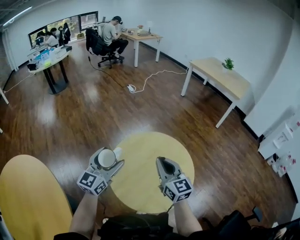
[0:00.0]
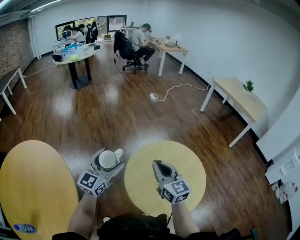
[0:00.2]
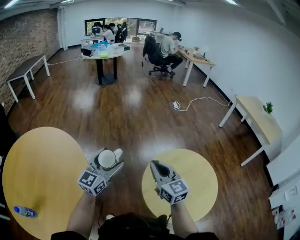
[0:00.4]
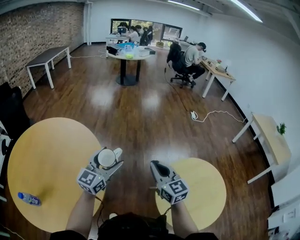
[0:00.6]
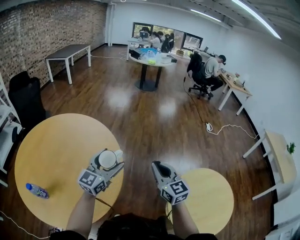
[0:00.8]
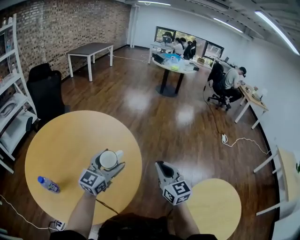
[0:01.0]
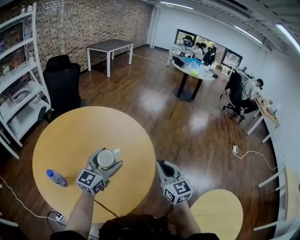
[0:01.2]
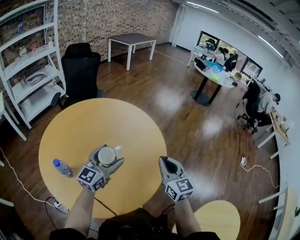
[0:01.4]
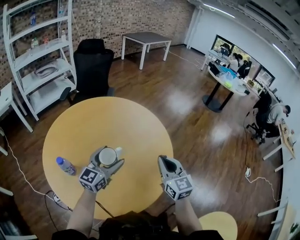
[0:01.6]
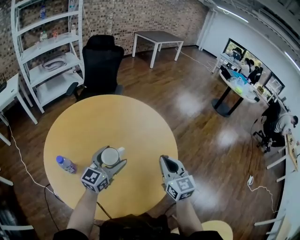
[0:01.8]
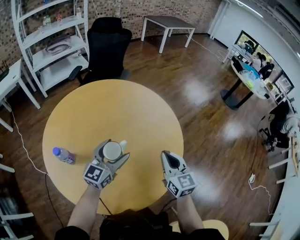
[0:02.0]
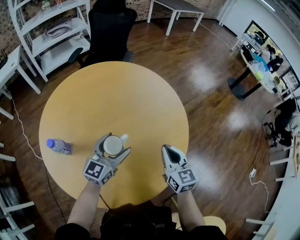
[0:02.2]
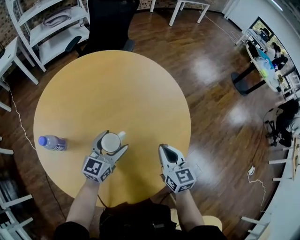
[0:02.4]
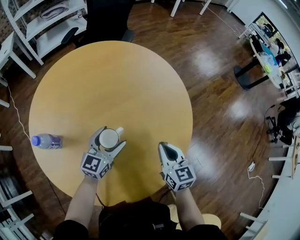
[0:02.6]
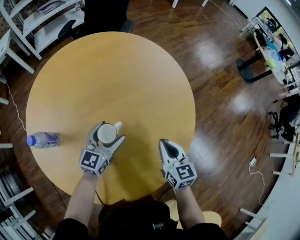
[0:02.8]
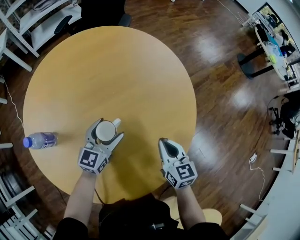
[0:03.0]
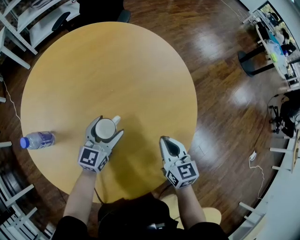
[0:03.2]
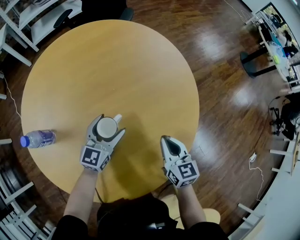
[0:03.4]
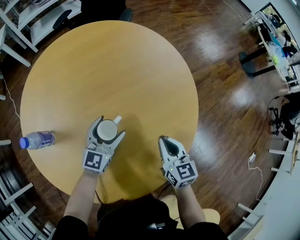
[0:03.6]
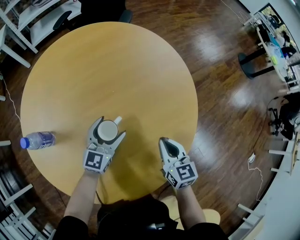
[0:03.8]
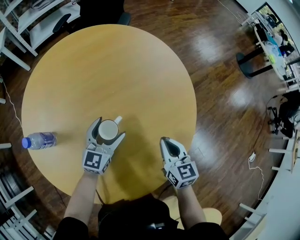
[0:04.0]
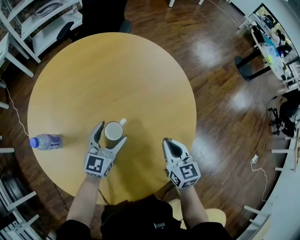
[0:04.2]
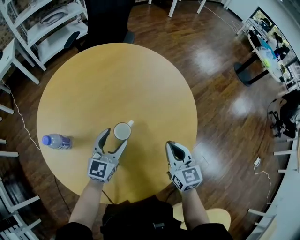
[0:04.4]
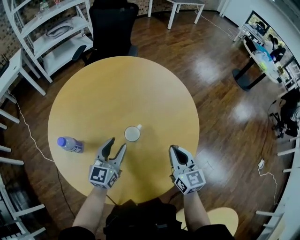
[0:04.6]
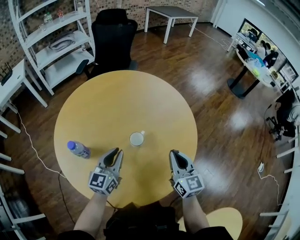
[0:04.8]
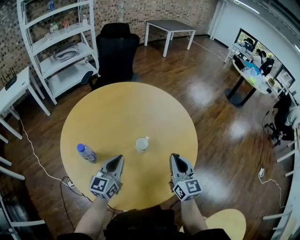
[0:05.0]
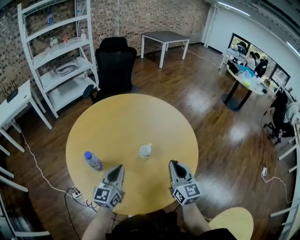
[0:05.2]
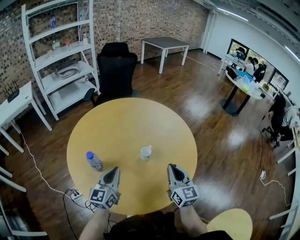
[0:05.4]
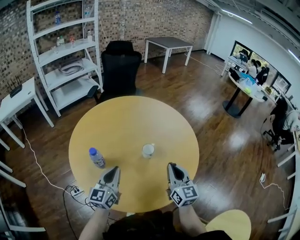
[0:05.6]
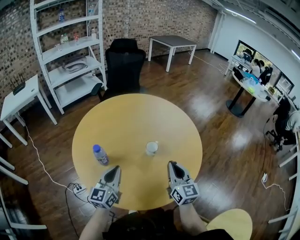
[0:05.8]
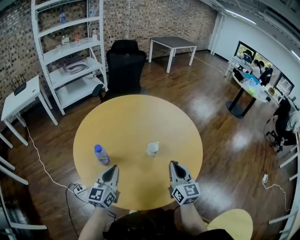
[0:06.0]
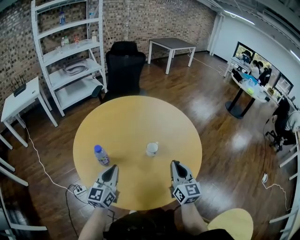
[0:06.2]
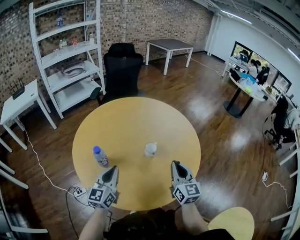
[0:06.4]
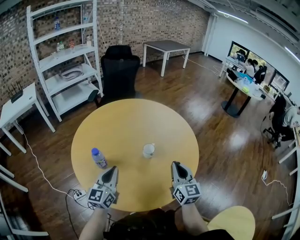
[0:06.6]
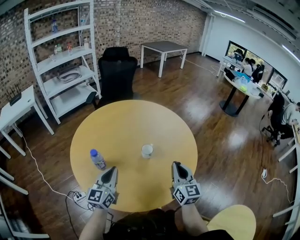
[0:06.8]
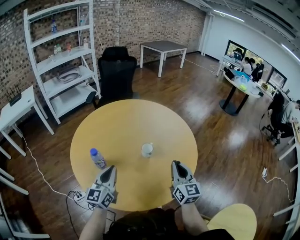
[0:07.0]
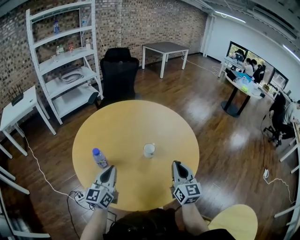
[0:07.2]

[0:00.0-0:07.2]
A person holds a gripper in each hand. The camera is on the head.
0:00.0 to 0:01.4: The two grippers travel together, roughly 70 cm. The left gripper turns by roughly 70 degrees, while the right gripper swivels roughly 70 degrees.
0:01.4 to 0:02.8: The two grippers go approximately 25 cm downward and forward. The right gripper rotates about 30 degrees. Meanwhile the left gripper swivels approximately 30 degrees.
0:02.8 to 0:04.4: The left gripper changes place by about 5 cm. The right gripper changes place by roughly 5 cm.
0:04.4 to 0:05.8: The two grippers go some 20 cm to the left, backward and upward. The left gripper closes its fingers.
0:05.8 to 0:07.2: The grippers make only small movements.

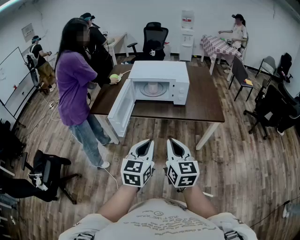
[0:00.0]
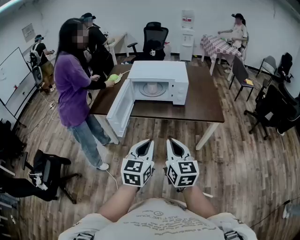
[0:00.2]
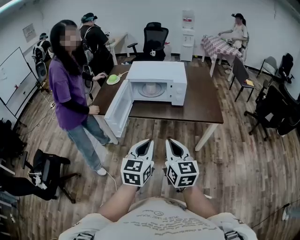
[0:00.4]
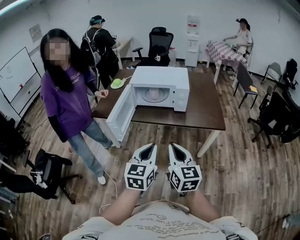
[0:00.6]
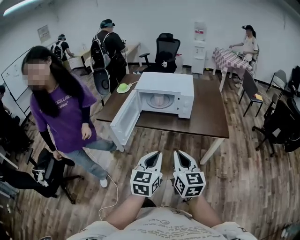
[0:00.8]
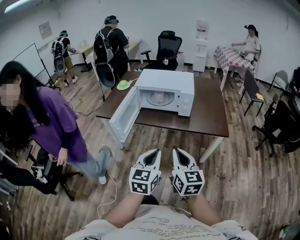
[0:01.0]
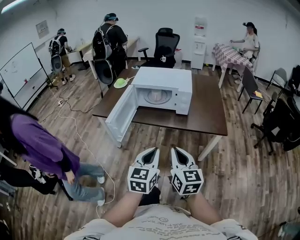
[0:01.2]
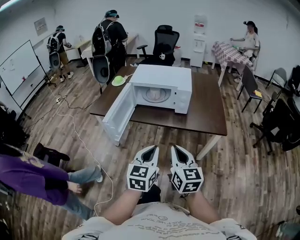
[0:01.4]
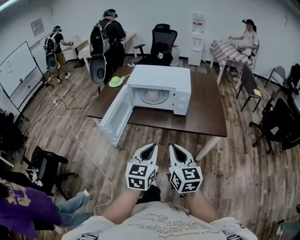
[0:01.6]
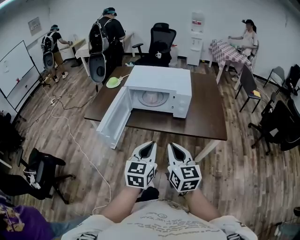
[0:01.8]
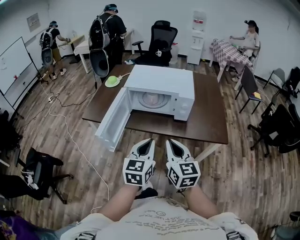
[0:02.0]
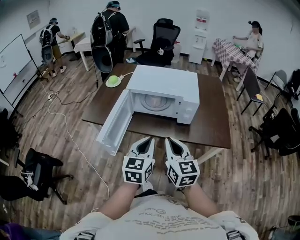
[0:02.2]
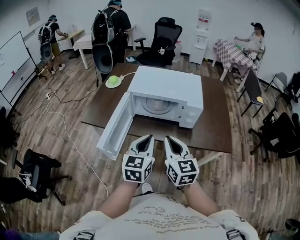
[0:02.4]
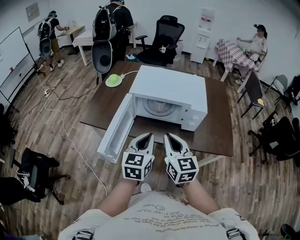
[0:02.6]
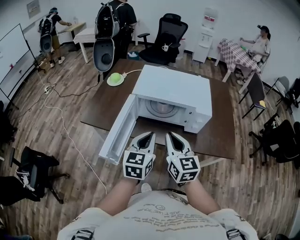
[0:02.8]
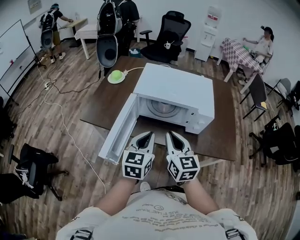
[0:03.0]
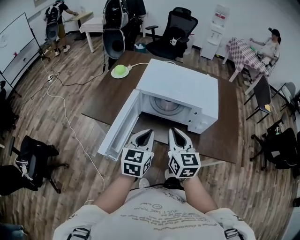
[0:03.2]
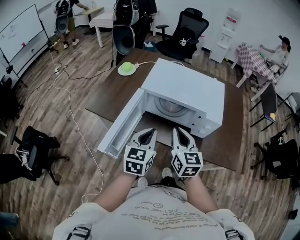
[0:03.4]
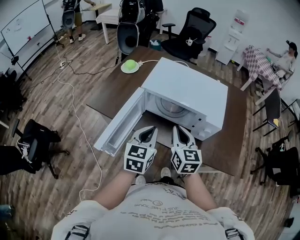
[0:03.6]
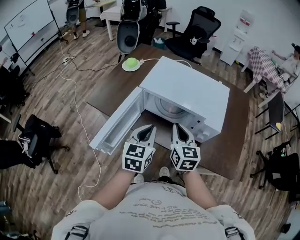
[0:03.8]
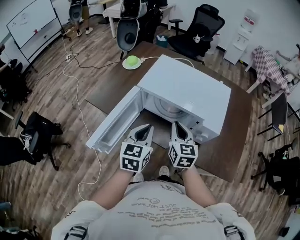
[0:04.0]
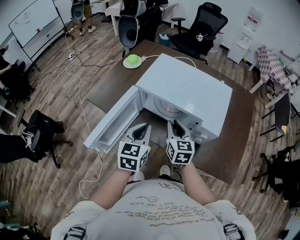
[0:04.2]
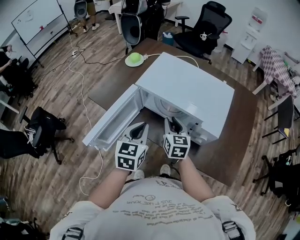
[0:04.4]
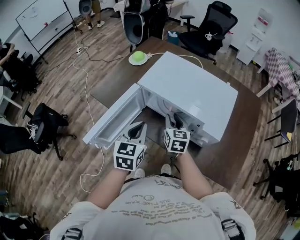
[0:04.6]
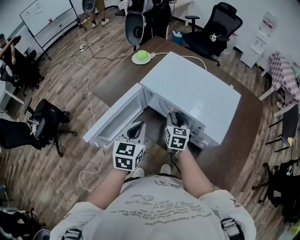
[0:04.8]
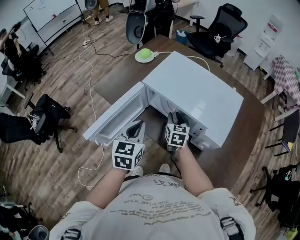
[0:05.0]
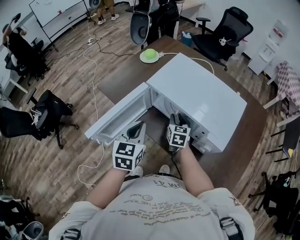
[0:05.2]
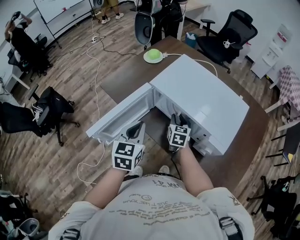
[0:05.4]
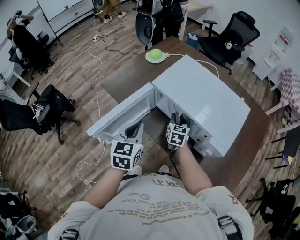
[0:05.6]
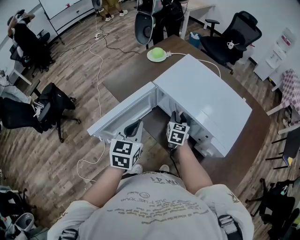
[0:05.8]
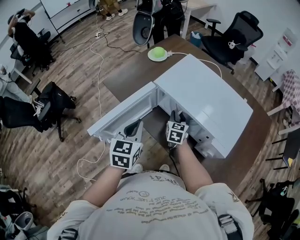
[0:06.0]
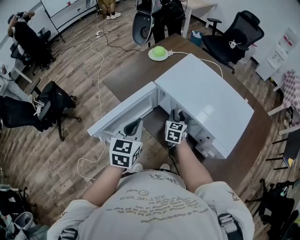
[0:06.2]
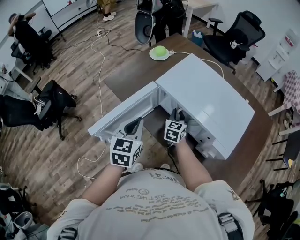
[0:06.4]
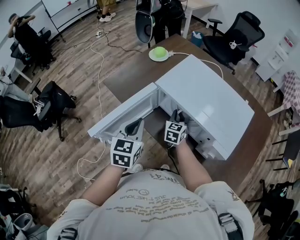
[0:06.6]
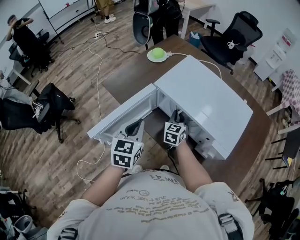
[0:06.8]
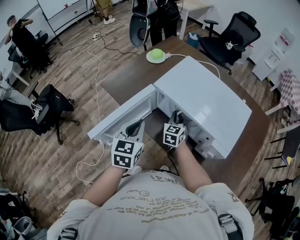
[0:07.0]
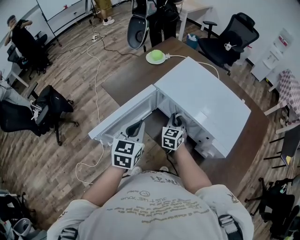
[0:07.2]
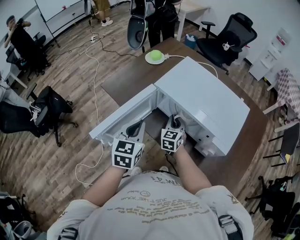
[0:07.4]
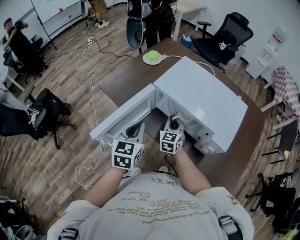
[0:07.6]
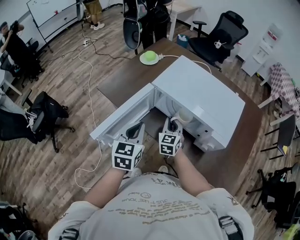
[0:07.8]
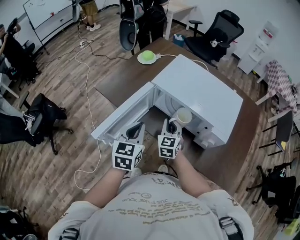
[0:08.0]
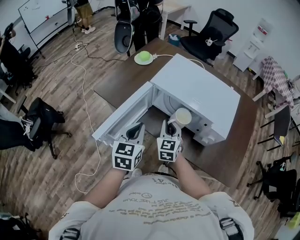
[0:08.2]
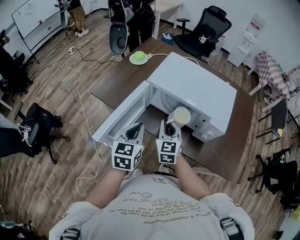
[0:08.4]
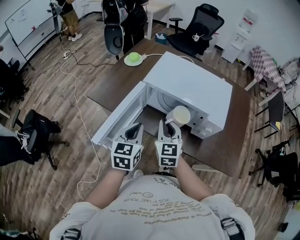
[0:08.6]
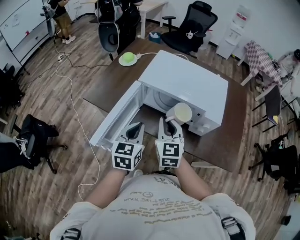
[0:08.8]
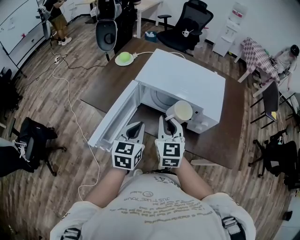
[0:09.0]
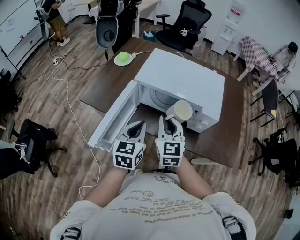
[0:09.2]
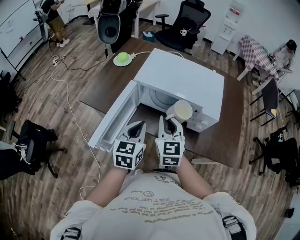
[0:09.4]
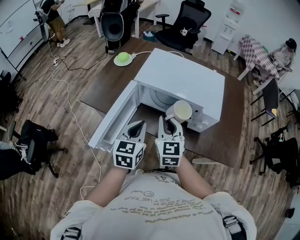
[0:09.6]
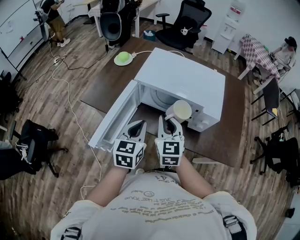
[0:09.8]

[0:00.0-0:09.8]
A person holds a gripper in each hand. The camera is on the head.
0:00.0 to 0:01.4: Both grippers move to the right, some 5 cm.
0:01.4 to 0:02.8: The grippers both shift forward by roughly 25 cm.
0:02.8 to 0:04.2: The left gripper moves forward, about 10 cm. The right gripper travels forward and downward by roughly 15 cm.
0:04.2 to 0:05.6: The left gripper shifts about 5 cm to the left, while the right gripper is displaced downward and forward by roughly 15 cm.
0:05.6 to 0:07.0: The grippers make only small movements.
0:07.0 to 0:08.4: The right gripper is displaced backward and upward by approximately 15 cm.
0:08.4 to 0:09.8: The right gripper goes roughly 5 cm upward.

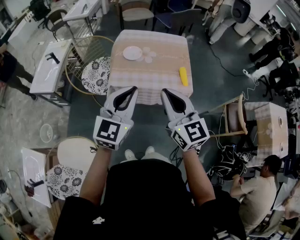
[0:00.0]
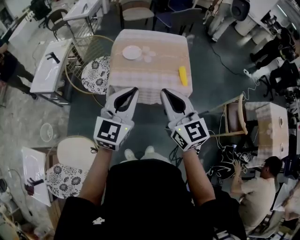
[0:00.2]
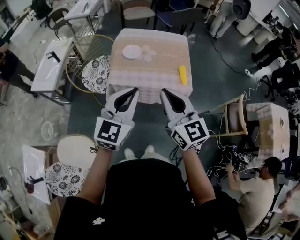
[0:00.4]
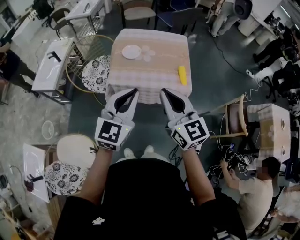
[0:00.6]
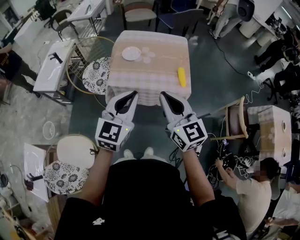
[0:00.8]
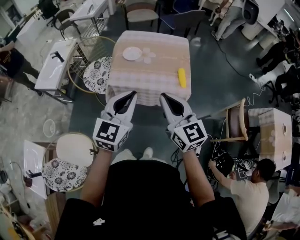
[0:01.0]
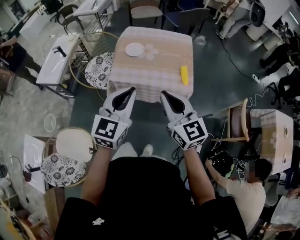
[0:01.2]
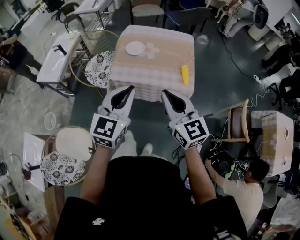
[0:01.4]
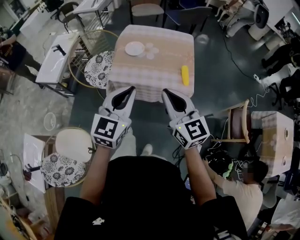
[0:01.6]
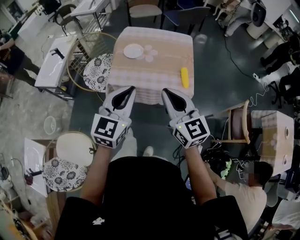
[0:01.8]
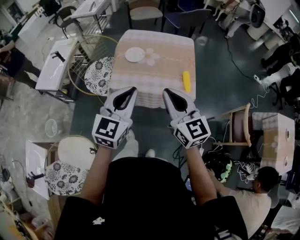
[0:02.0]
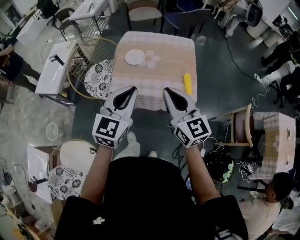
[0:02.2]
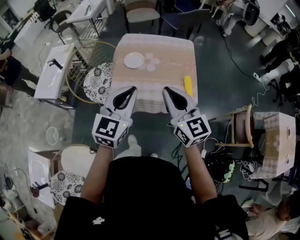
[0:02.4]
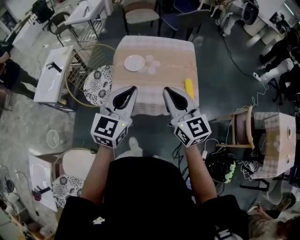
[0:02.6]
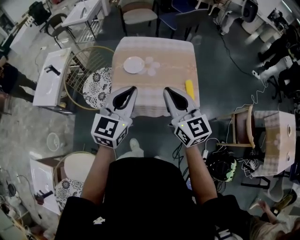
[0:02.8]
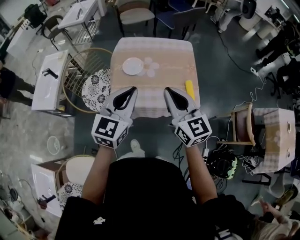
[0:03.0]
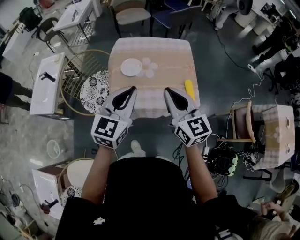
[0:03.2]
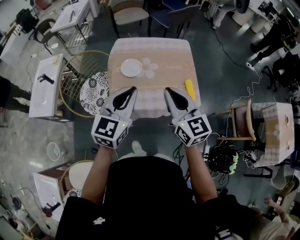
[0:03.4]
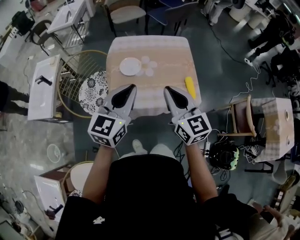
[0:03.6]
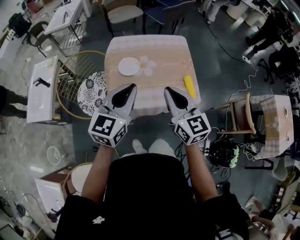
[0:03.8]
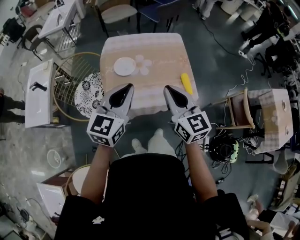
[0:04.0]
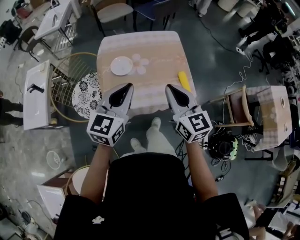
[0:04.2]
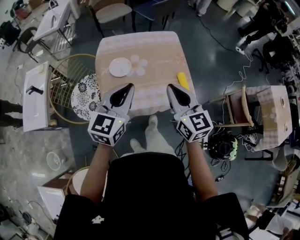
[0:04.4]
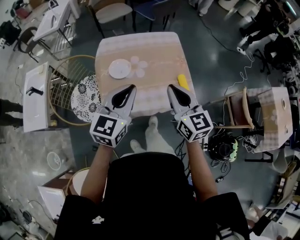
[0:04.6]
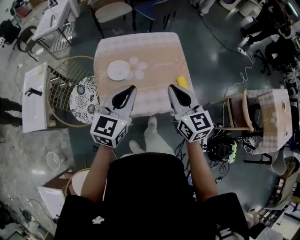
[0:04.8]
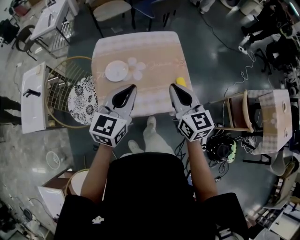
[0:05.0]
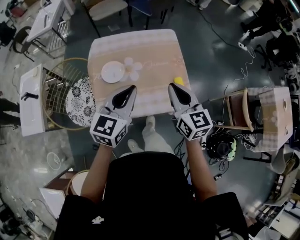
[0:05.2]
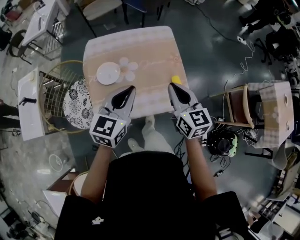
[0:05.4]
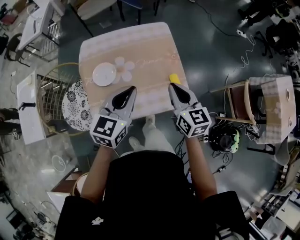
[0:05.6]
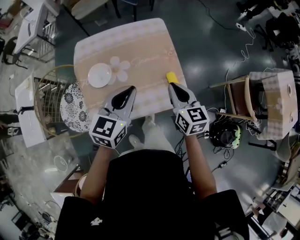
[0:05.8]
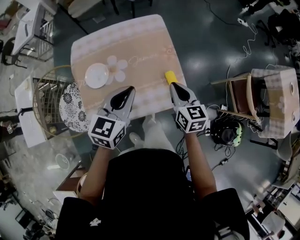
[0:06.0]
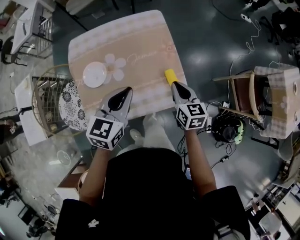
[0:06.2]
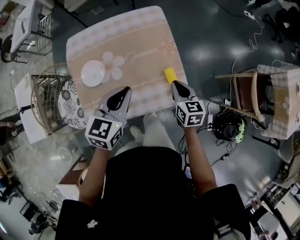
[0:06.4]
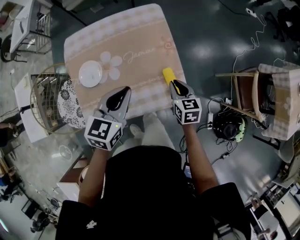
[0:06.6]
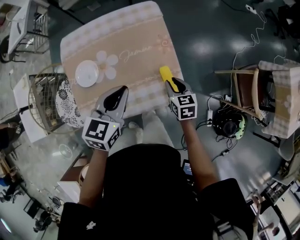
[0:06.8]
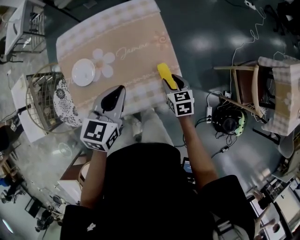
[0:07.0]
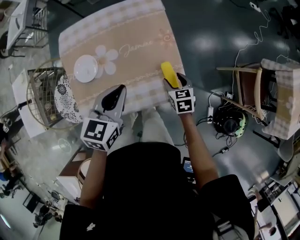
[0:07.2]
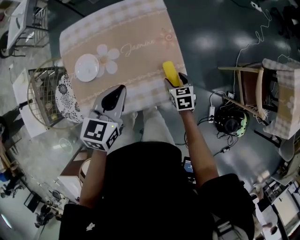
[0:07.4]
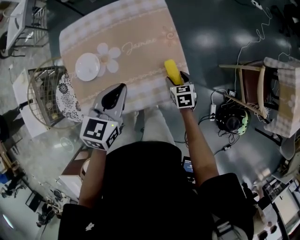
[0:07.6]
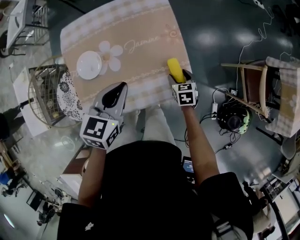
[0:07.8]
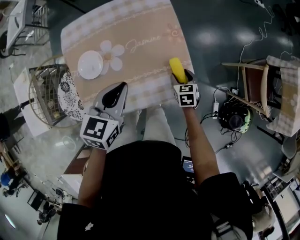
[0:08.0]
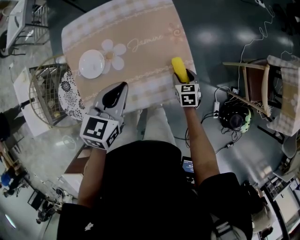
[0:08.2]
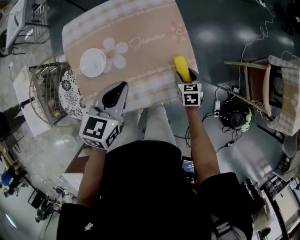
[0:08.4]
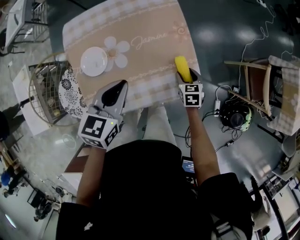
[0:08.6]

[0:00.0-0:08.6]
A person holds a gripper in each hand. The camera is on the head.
0:00.0 to 0:01.4: Both grippers move to the right, some 5 cm.
0:01.4 to 0:02.8: The two grippers go roughly 15 cm forward.
0:02.8 to 0:04.4: Both grippers move forward, some 5 cm.
0:04.4 to 0:05.8: The left gripper is displaced forward, to the right and downward by some 20 cm. The right gripper is displaced forward, downward and to the right by about 20 cm.
0:05.8 to 0:07.2: The right gripper shifts approximately 20 cm downward, swivels some 30 degrees, and opens its fingers; the left gripper is displaced downward by about 5 cm.
0:07.2 to 0:08.6: The left gripper shifts about 5 cm to the left.
